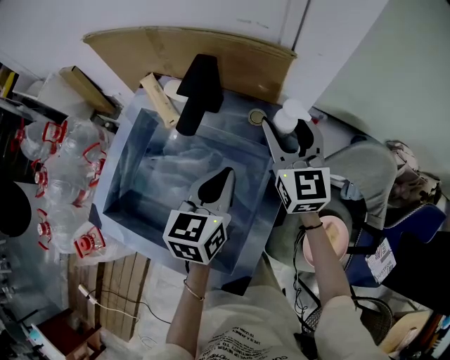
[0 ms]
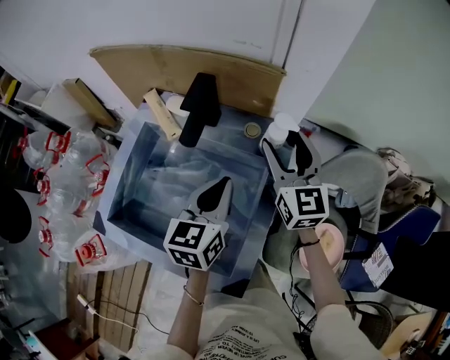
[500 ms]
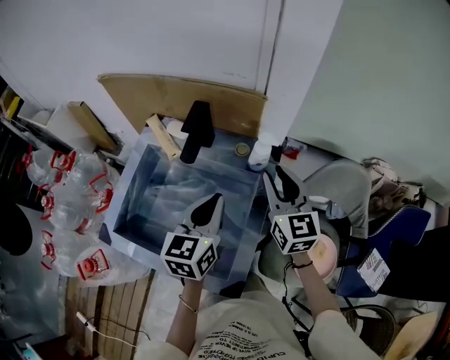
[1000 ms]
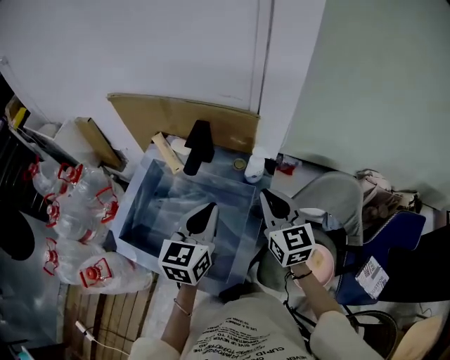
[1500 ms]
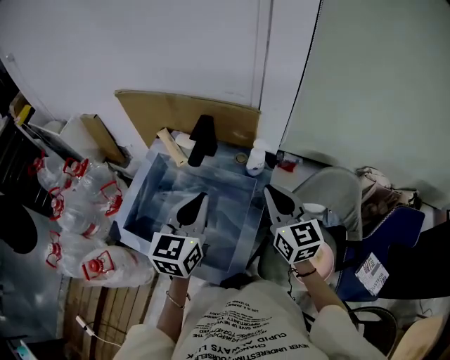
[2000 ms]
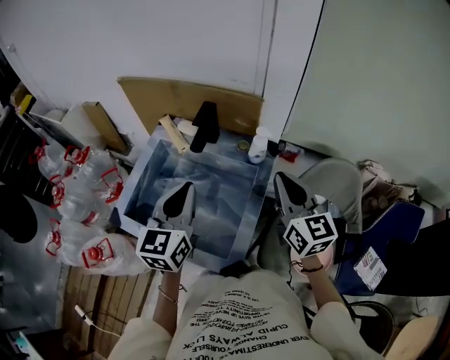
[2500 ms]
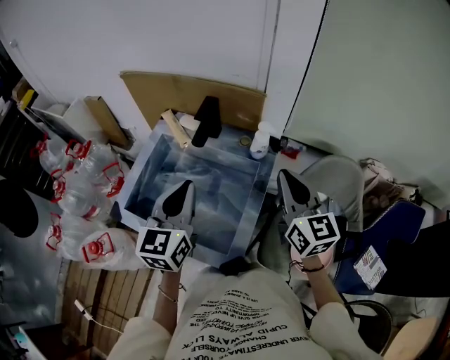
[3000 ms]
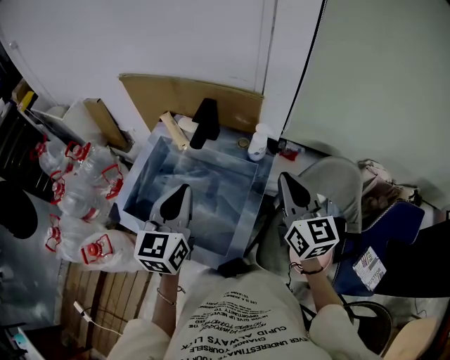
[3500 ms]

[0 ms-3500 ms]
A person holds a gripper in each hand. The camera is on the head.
0 ms to 2000 ms: The right gripper travels backward and upward by approximately 15 cm, and closes; the left gripper moves upward and backward, approximately 15 cm.
2000 ms to 3500 ms: The left gripper changes place by about 5 cm; the right gripper shifts by some 5 cm.

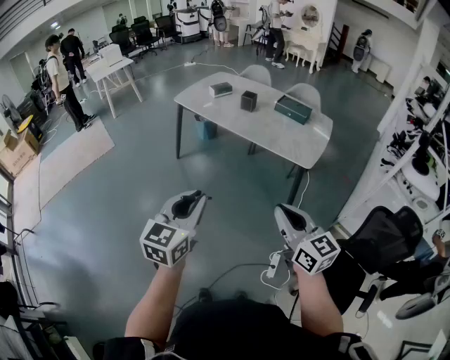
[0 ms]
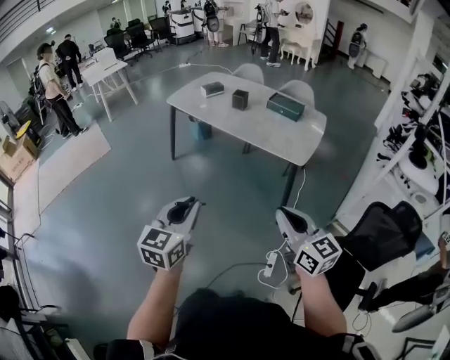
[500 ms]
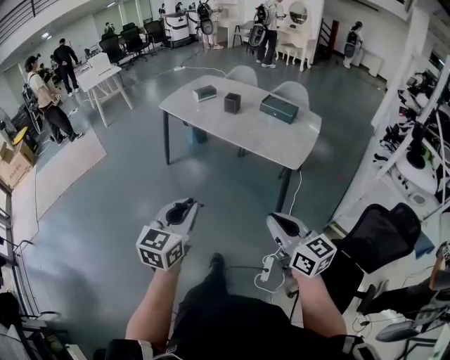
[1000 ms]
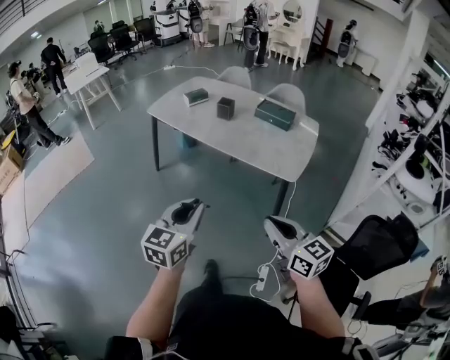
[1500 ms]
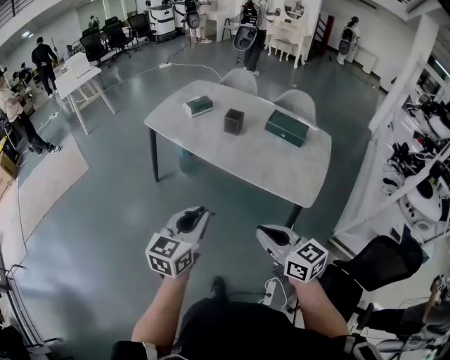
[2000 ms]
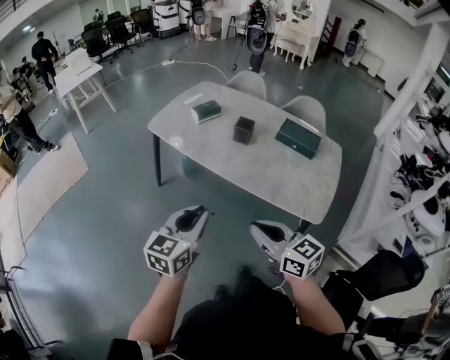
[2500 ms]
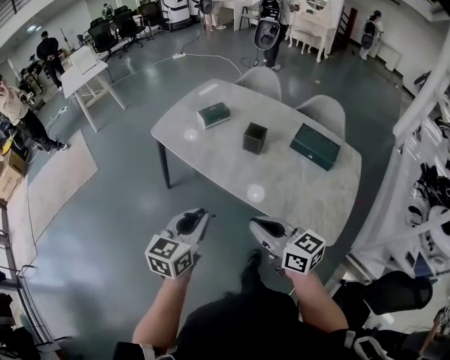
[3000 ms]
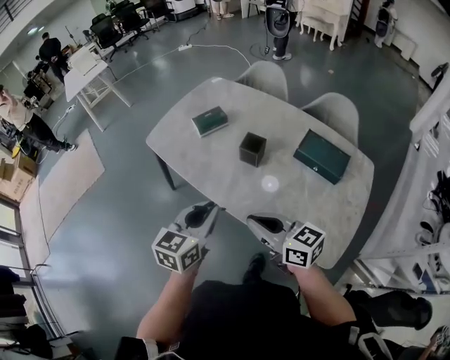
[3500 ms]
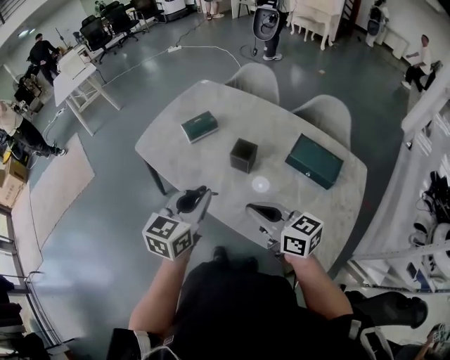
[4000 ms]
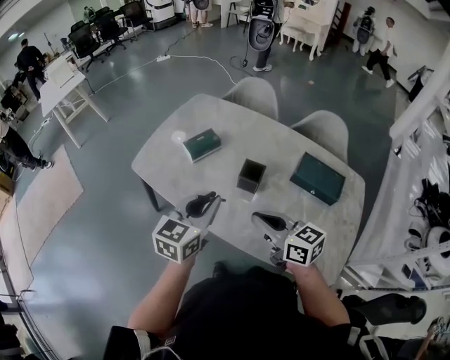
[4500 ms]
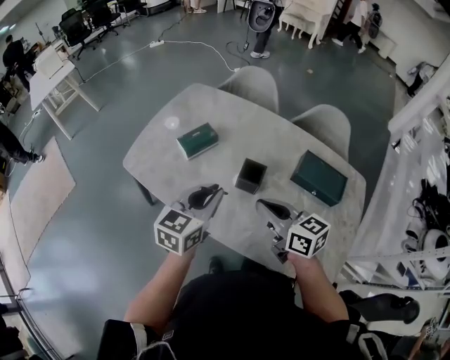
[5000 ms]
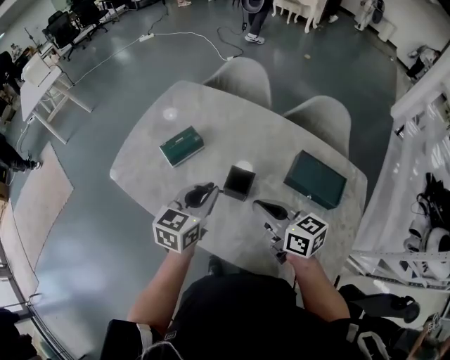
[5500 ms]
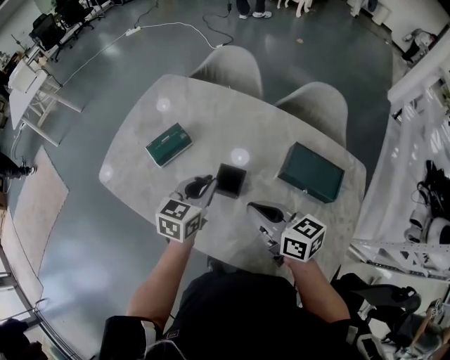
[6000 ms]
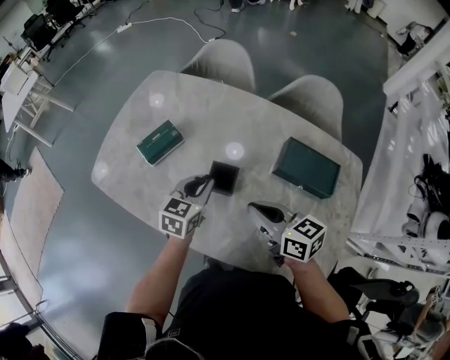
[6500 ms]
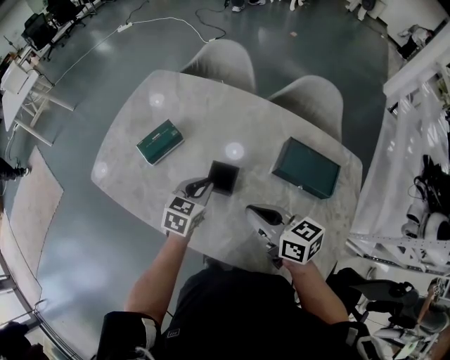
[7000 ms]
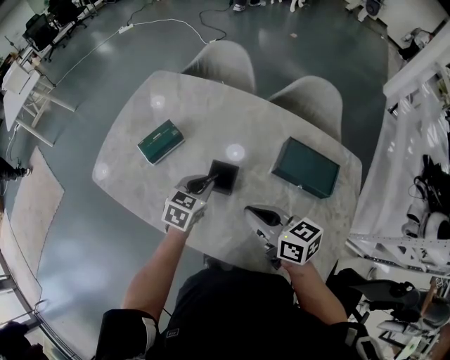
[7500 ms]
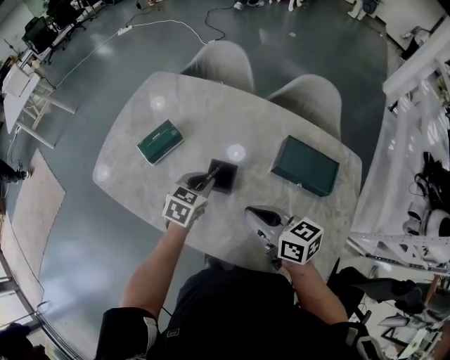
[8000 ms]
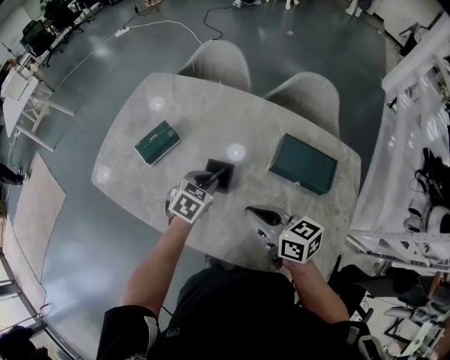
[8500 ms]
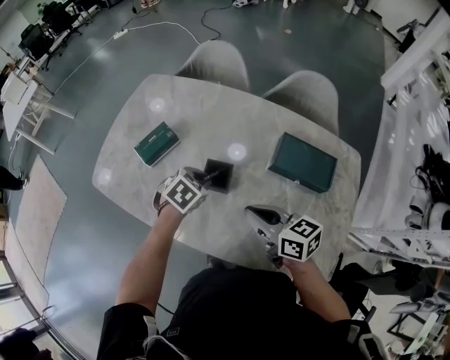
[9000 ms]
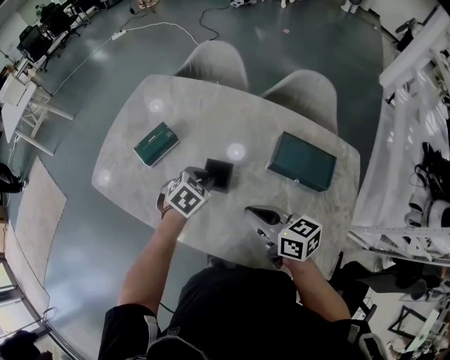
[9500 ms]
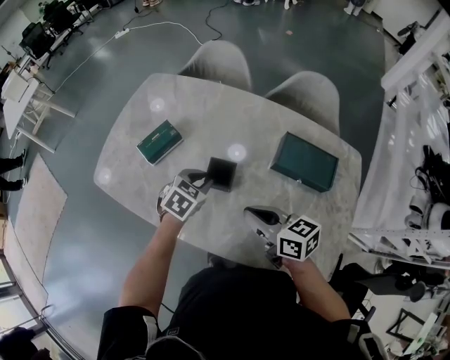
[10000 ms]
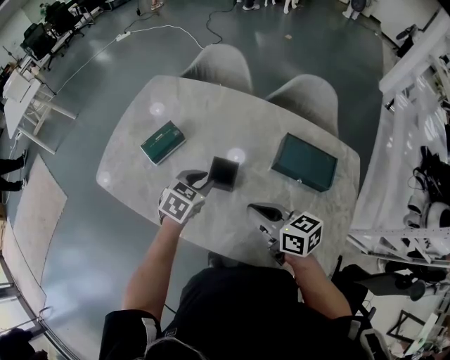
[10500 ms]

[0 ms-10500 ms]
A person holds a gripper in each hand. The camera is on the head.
0 ms to 2000 ms: The grippers both shift forward by approximately 30 cm.
2000 ms to 4000 ms: The pair of grippers is taken forward, some 40 cm.
4000 ms to 6500 ms: The left gripper is displaced forward and downward by some 30 cm. The right gripper shifts approximately 20 cm forward.
6500 ms to 8500 ms: The left gripper ends up roughly 5 cm from where it was, and swivels approximately 20 degrees.
8500 ms to 10500 ms: The grippers make only small movements.

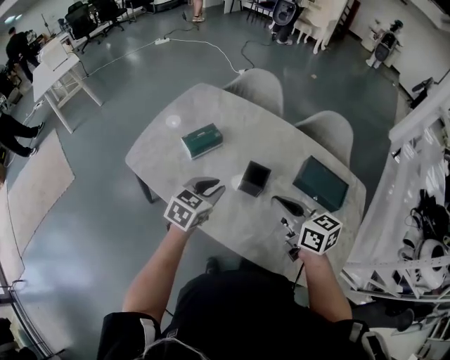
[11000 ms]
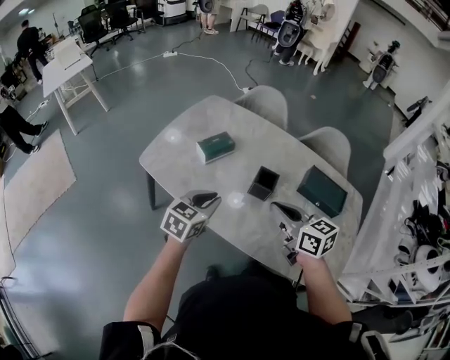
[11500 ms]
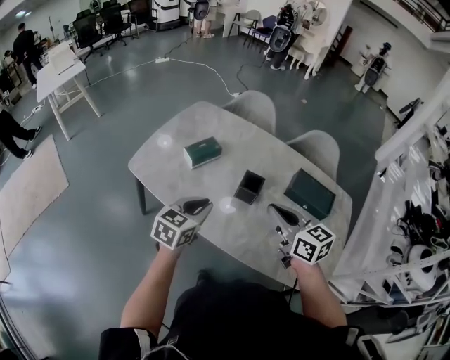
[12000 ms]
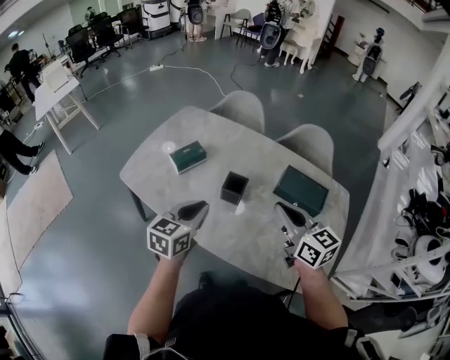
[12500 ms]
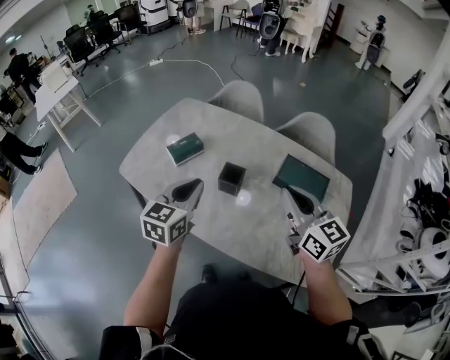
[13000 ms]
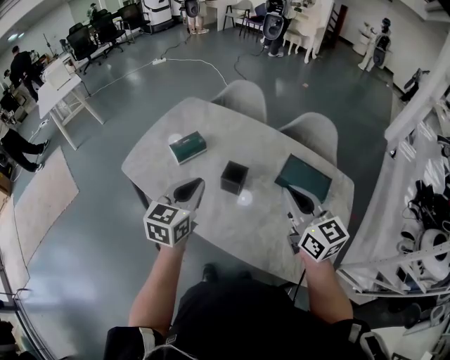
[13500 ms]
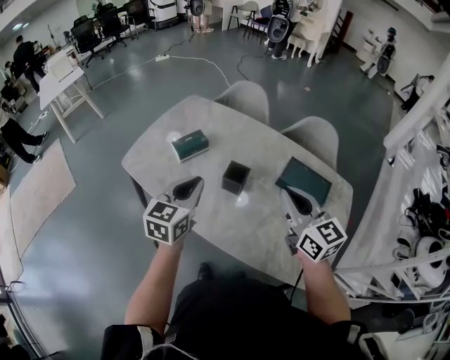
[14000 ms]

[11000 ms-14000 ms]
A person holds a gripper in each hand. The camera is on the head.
11000 ms to 12500 ms: The left gripper is displaced backward and upward by roughly 10 cm, and reaches some 5 cm to the left, then returns; the right gripper goes about 10 cm upward, to the right and backward.
12500 ms to 14000 ms: The grippers move only a little.

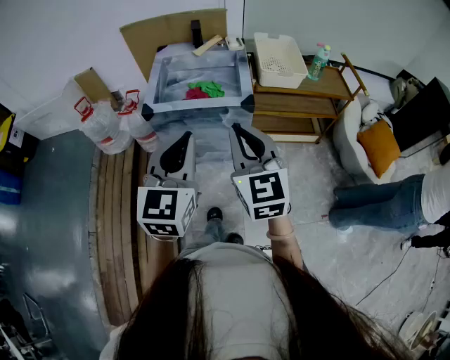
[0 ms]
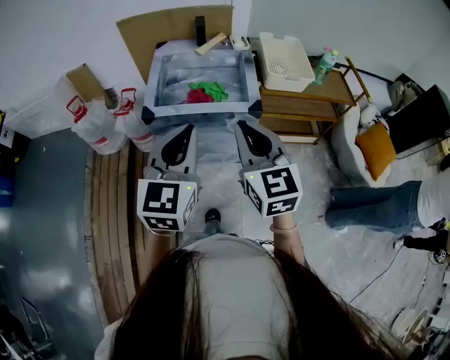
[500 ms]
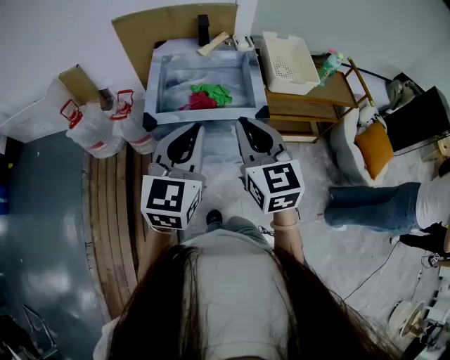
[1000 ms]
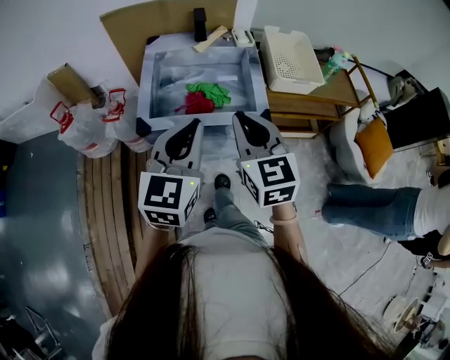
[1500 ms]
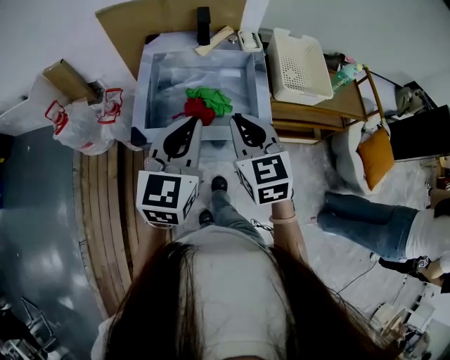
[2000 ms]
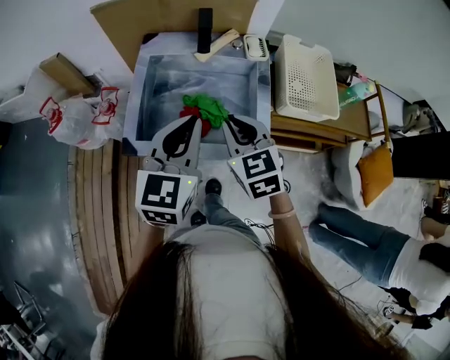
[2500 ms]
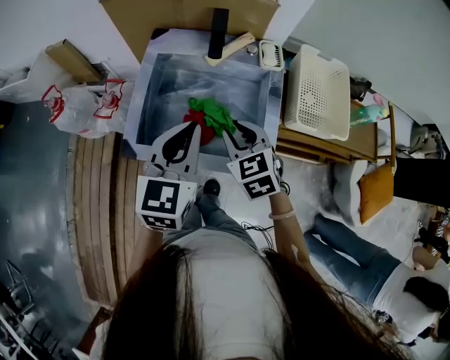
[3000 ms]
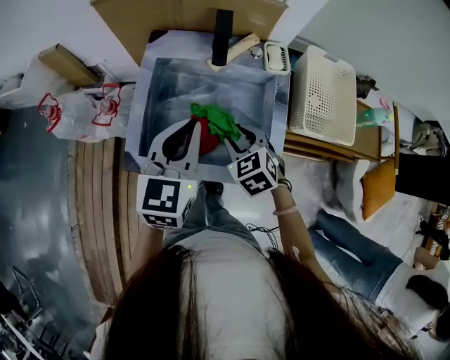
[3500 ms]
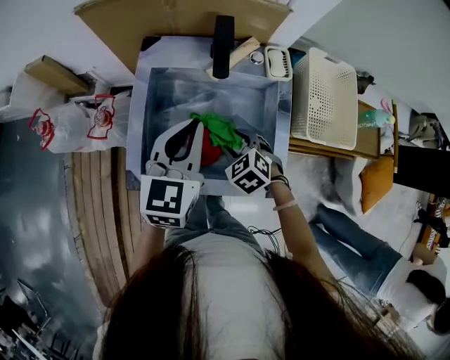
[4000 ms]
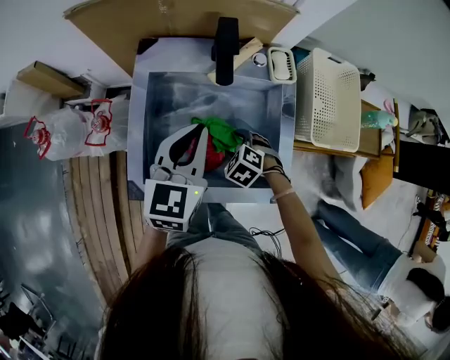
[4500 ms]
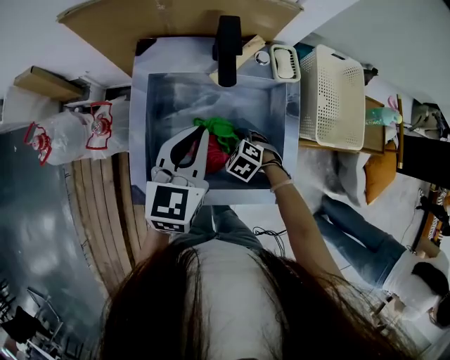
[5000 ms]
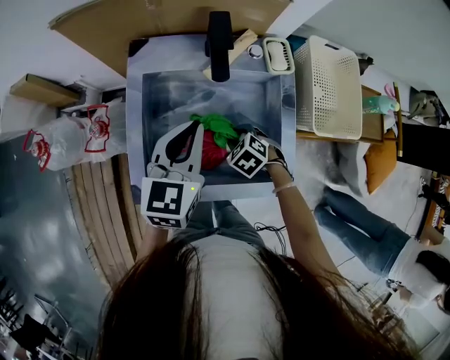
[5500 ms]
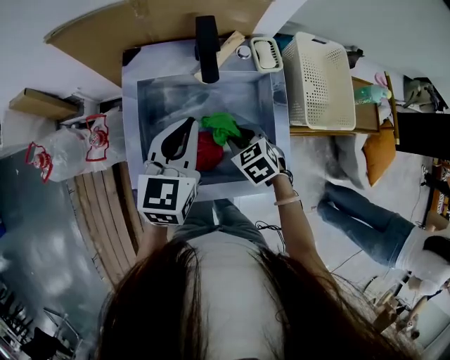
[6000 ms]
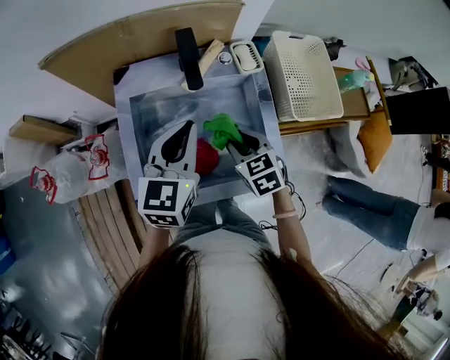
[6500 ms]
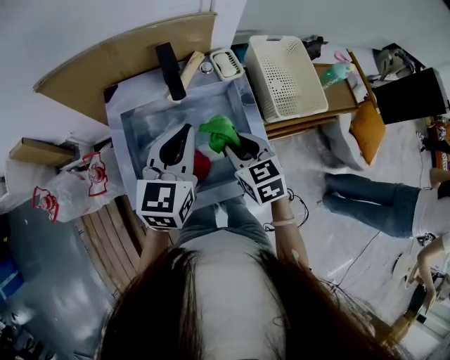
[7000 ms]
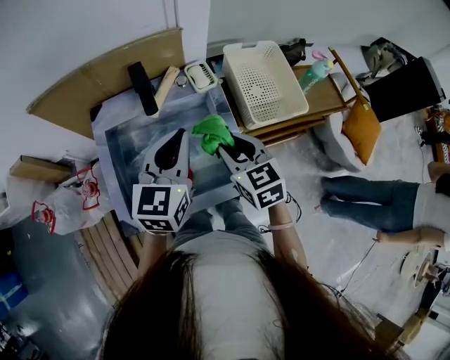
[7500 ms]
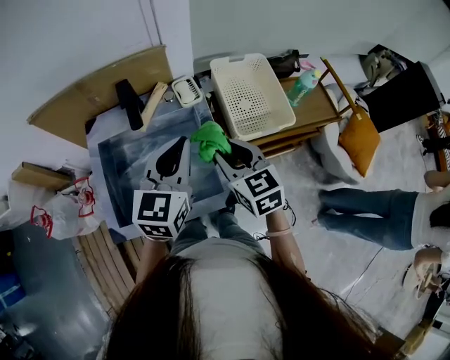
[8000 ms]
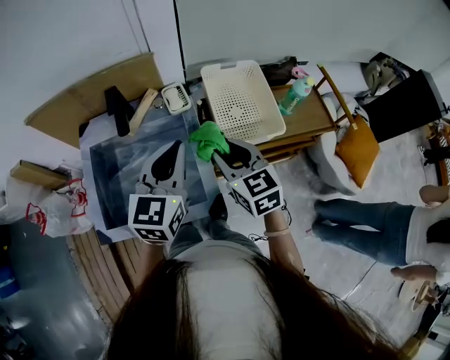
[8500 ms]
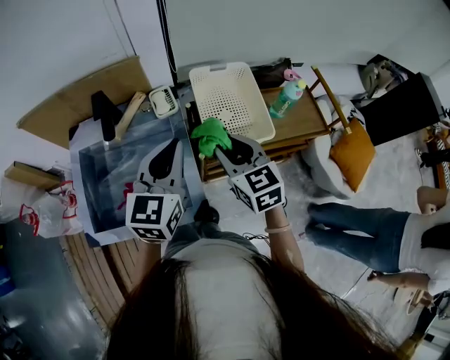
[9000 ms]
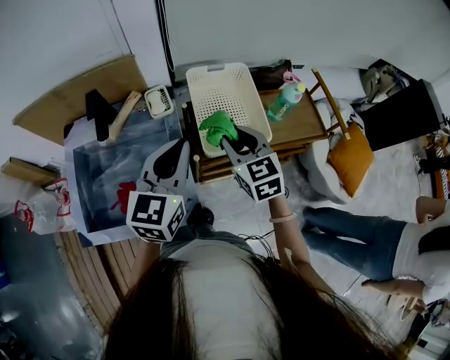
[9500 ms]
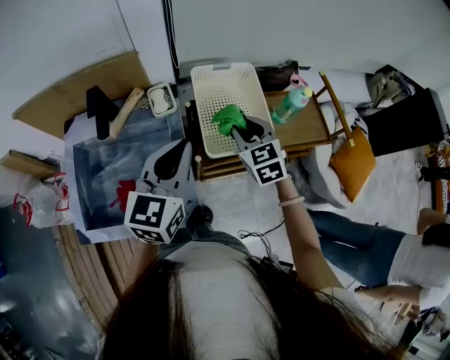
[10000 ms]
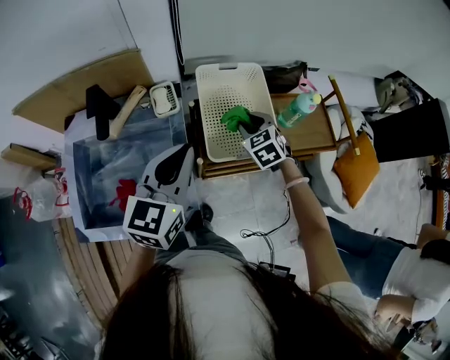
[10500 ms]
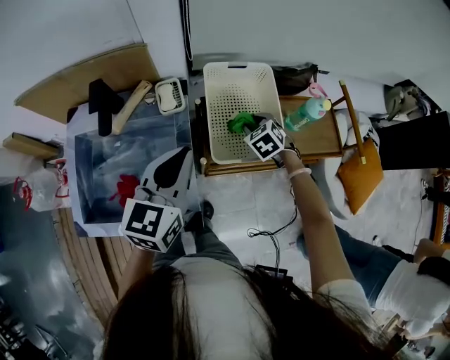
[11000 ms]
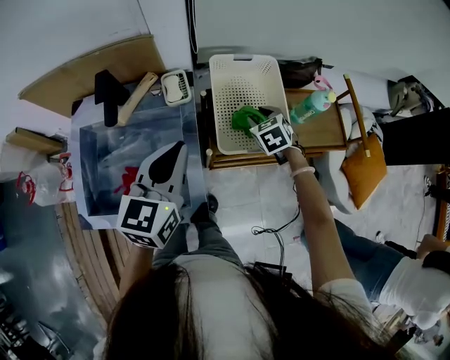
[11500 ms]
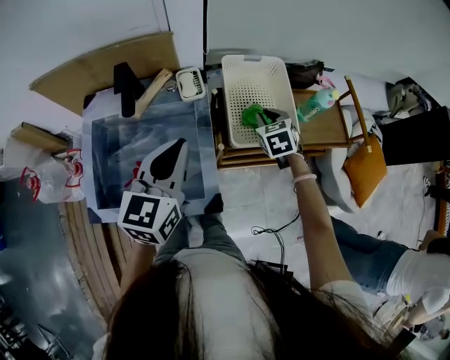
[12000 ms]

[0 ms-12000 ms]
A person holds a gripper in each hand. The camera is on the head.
0 ms to 2000 ms: The two grippers go approximately 30 cm forward.
2000 ms to 4000 ms: The left gripper goes roughly 25 cm forward and downward. Meanwhile the right gripper heads downward and forward, covering roughly 30 cm, tilts its fingers about 40 degrees downward, and opens up.
4000 ms to 6000 ms: The right gripper goes downward and returns, roughly 10 cm each way.
6000 ms to 8000 ms: The right gripper goes approximately 25 cm upward and to the right, and points its fingers roughly 30 degrees further upward. The left gripper travels to the right and upward by some 20 cm.
8000 ms to 10000 ms: The left gripper travels to the right by about 10 cm, while the right gripper moves to the right and forward, approximately 20 cm.
10000 ms to 12000 ms: The left gripper is displaced to the left by roughly 10 cm. The right gripper is displaced downward by some 5 cm.
